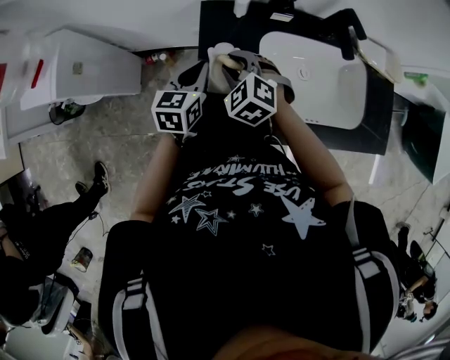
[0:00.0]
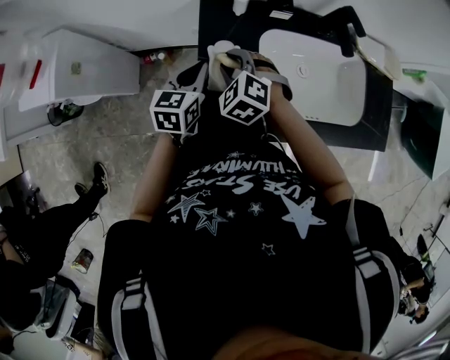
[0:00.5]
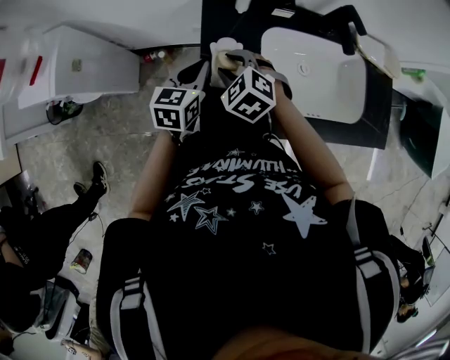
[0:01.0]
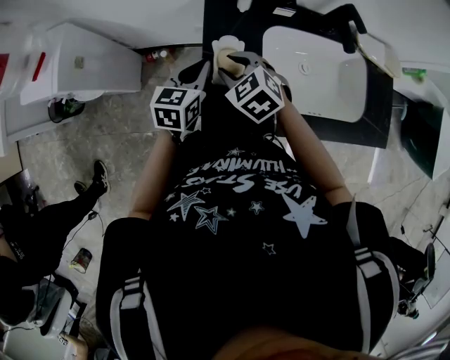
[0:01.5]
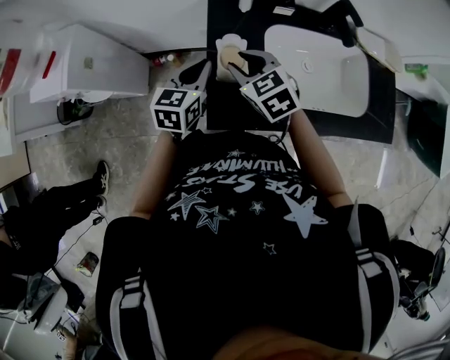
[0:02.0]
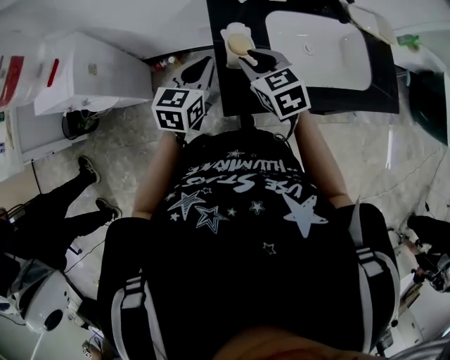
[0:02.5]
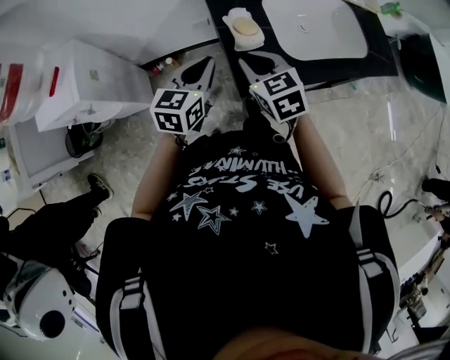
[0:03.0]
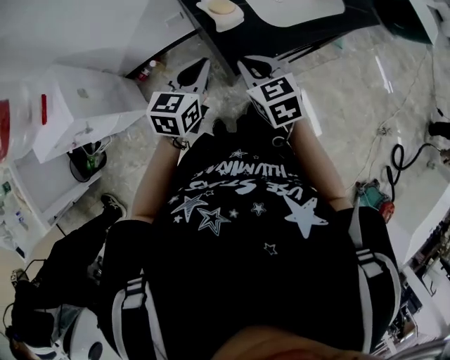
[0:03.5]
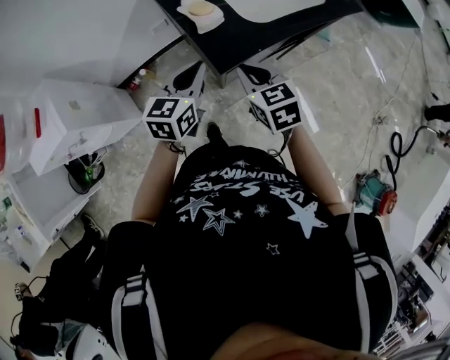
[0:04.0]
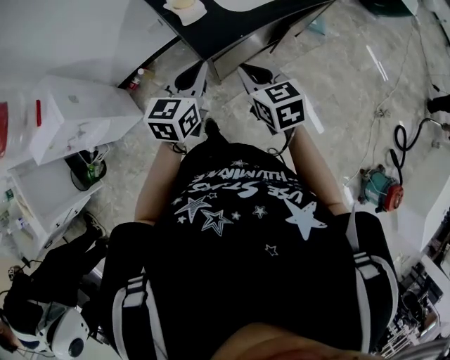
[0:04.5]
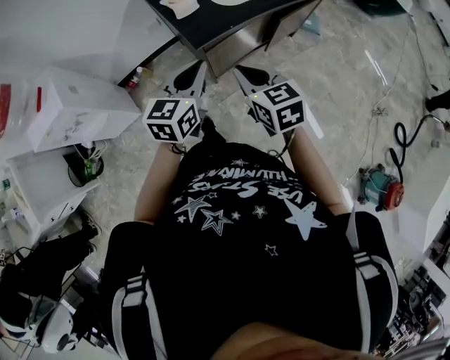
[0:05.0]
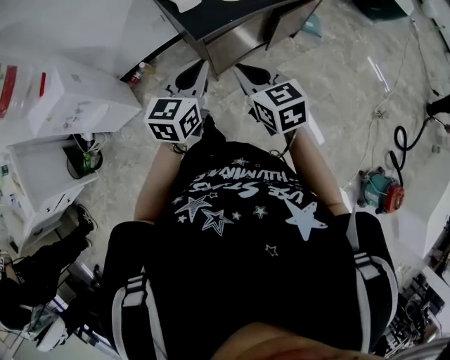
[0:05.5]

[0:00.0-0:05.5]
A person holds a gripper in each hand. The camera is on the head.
0:00.0 to 0:02.0: The left gripper ends up some 5 cm from where it was. Meanwhile the right gripper shifts by about 5 cm, and changes its angle by approximately 30 degrees.
0:02.0 to 0:03.5: The right gripper moves about 20 cm, turns by about 40 degrees, and closes up. The left gripper changes place by about 15 cm, and changes its angle by some 30 degrees.
0:03.5 to 0:05.5: The grippers both shift backward and to the right by approximately 25 cm.

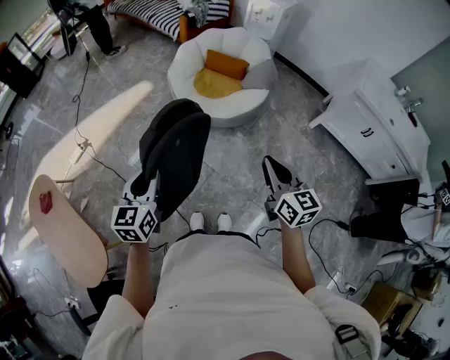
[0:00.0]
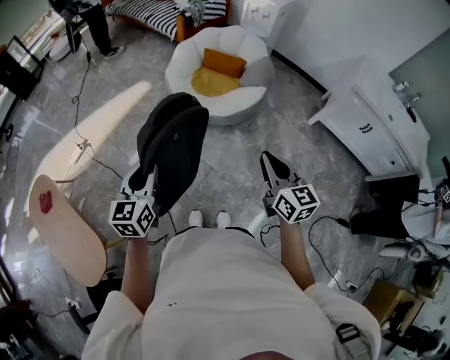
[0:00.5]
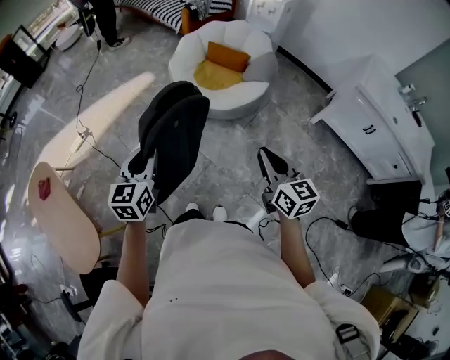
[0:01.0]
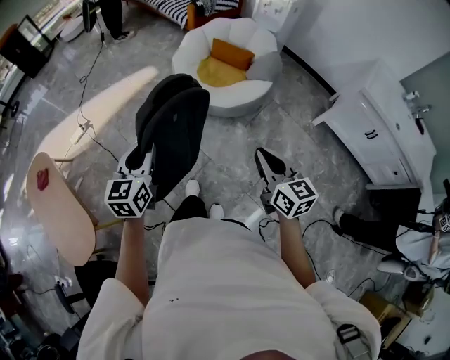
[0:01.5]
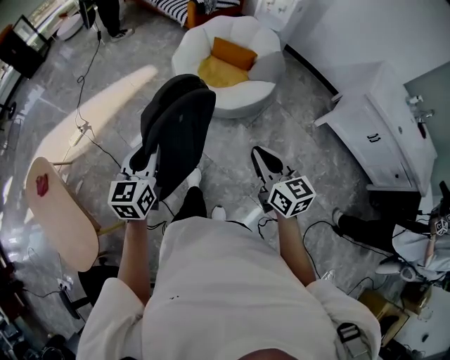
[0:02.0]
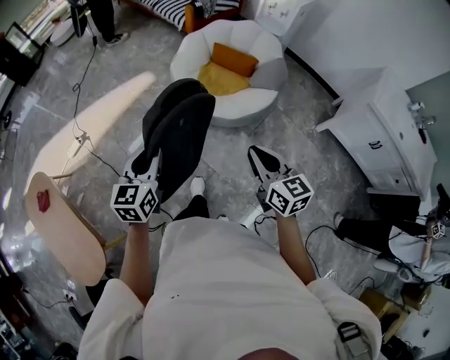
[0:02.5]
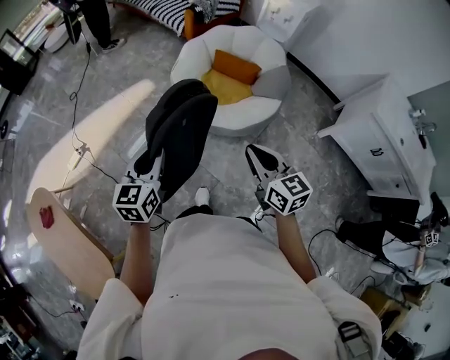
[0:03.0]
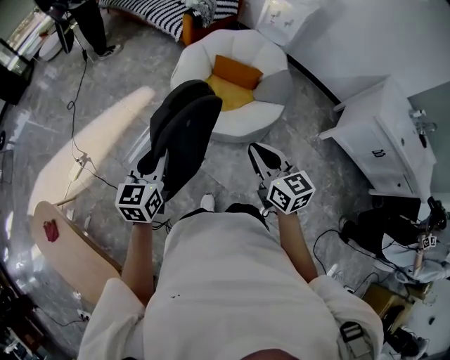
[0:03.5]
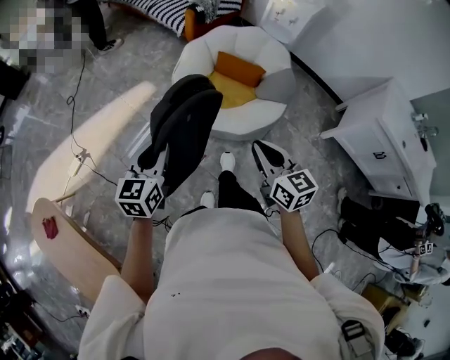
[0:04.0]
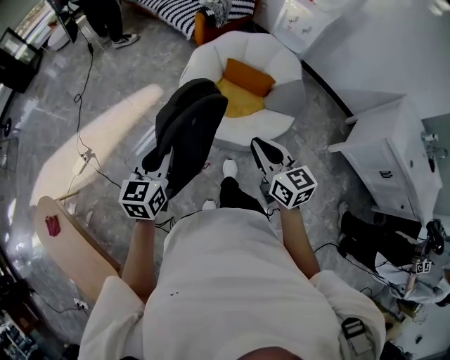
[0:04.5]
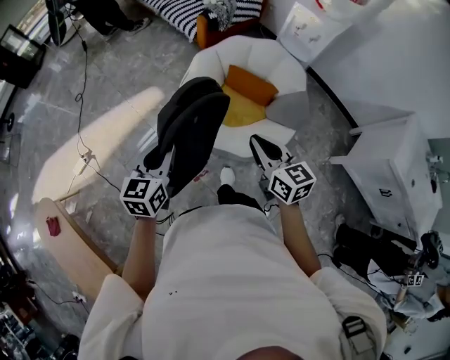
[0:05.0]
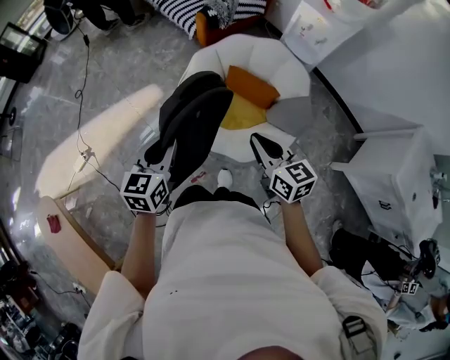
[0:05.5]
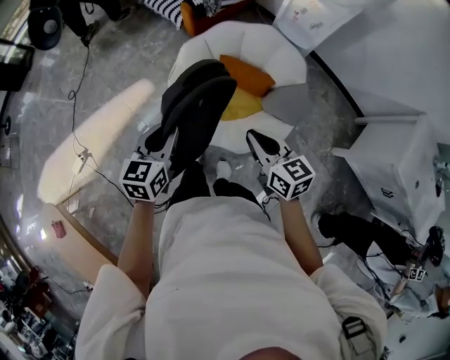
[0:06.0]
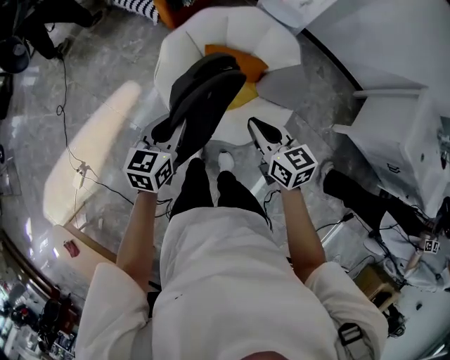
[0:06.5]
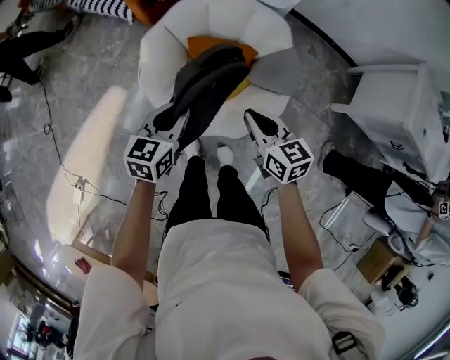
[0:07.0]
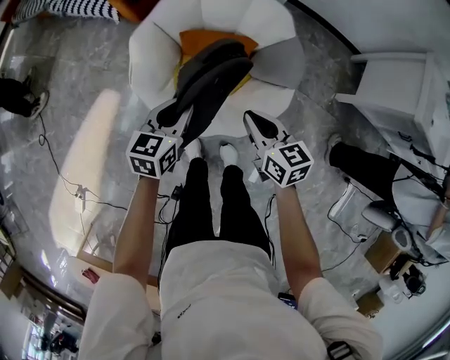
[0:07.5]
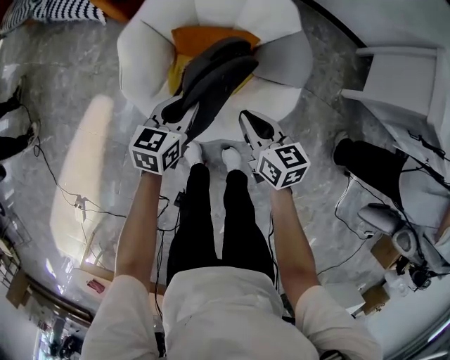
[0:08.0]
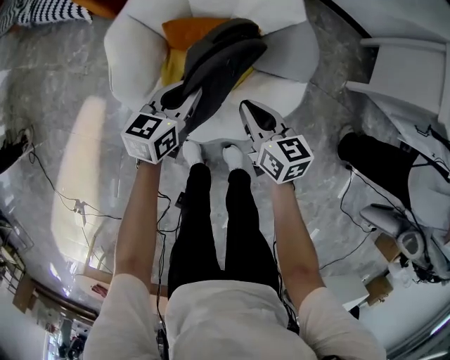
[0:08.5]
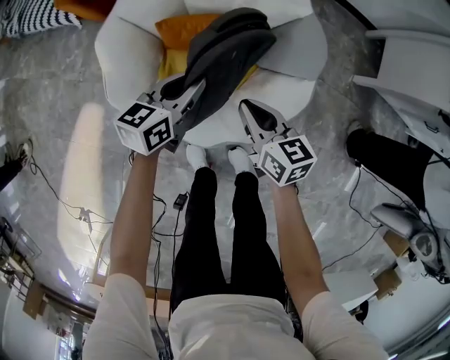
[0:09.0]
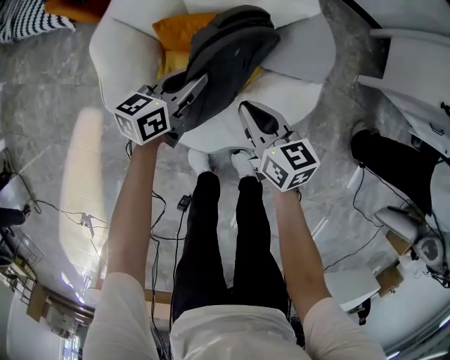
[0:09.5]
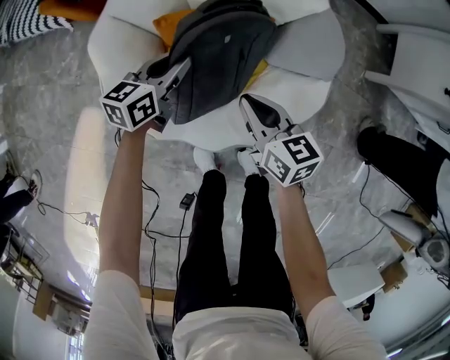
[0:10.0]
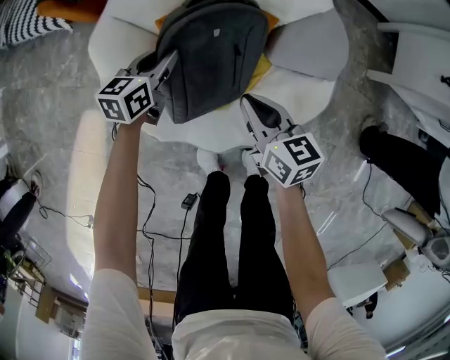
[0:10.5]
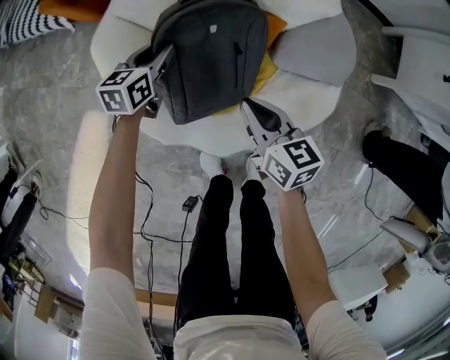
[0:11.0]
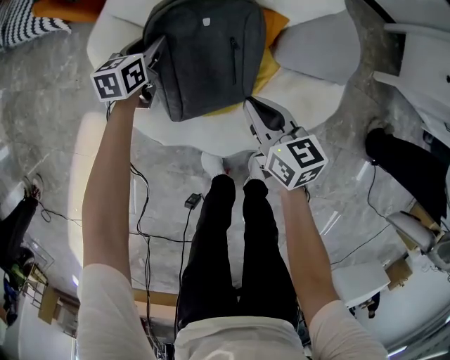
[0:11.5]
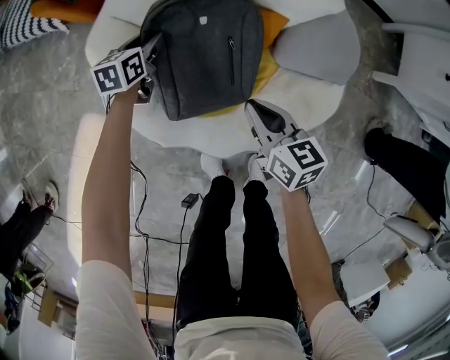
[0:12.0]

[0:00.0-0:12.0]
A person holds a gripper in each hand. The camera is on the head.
0:00.0 to 0:02.0: The left gripper is displaced forward by about 5 cm; the right gripper ends up about 5 cm from where it was.
0:02.0 to 0:04.0: The two grippers go some 25 cm forward.
0:04.0 to 0:06.0: Both grippers move forward and to the right, about 30 cm.
0:06.0 to 0:08.0: Both grippers travel together downward, about 25 cm. The right gripper rotates about 30 degrees; the left gripper turns by roughly 30 degrees.
0:08.0 to 0:10.0: Both grippers move downward and forward, roughly 20 cm.
0:10.0 to 0:12.0: The right gripper changes place by roughly 5 cm; the left gripper travels to the left, downward and forward by about 20 cm, and rotates roughly 20 degrees.

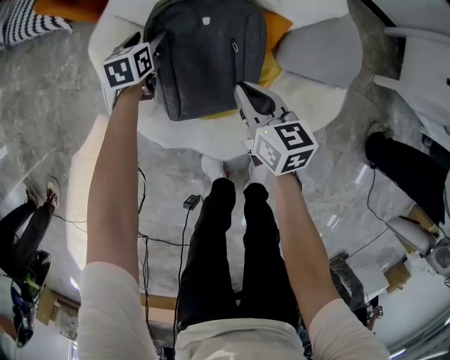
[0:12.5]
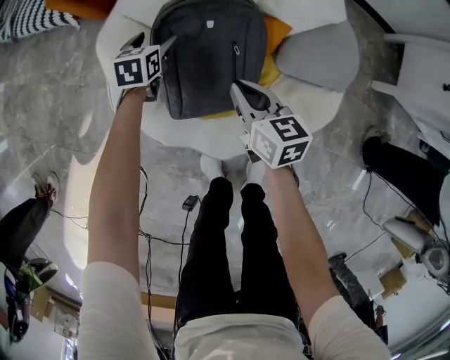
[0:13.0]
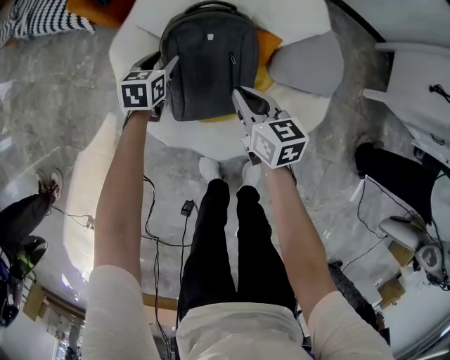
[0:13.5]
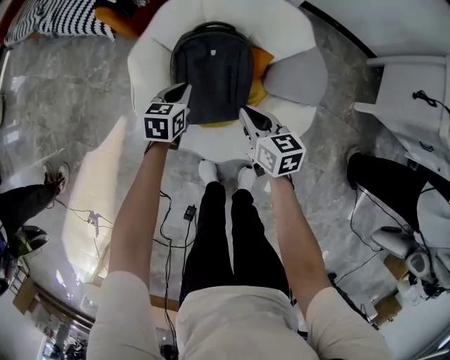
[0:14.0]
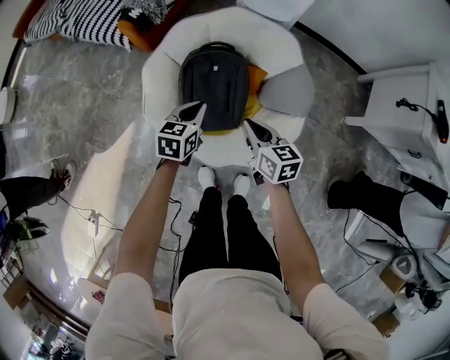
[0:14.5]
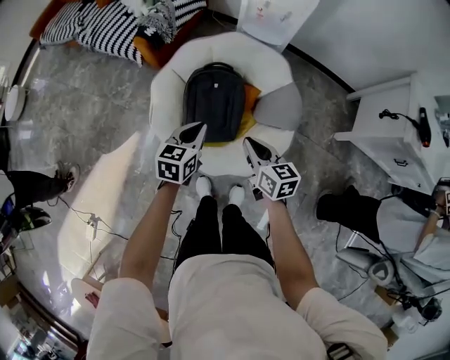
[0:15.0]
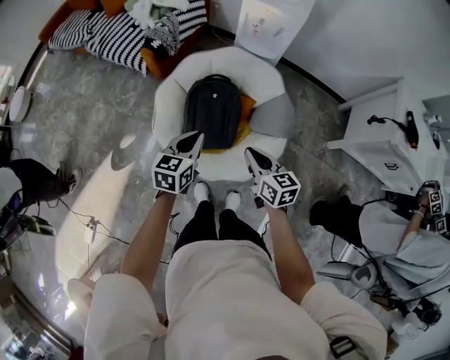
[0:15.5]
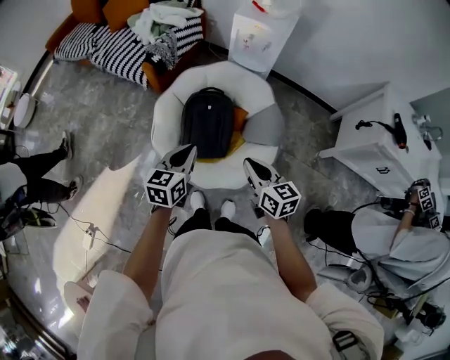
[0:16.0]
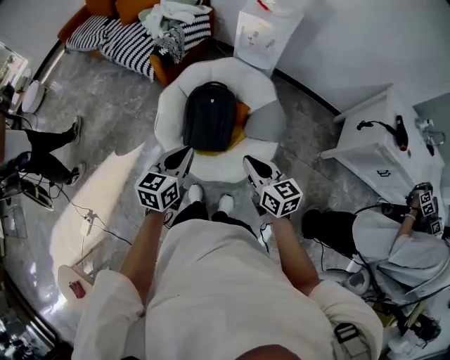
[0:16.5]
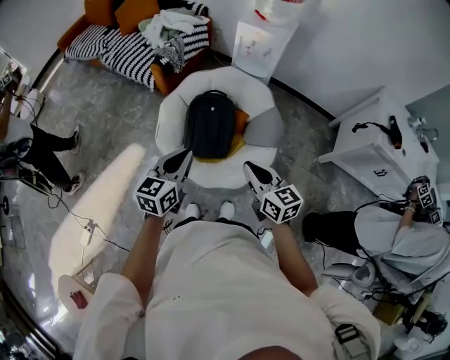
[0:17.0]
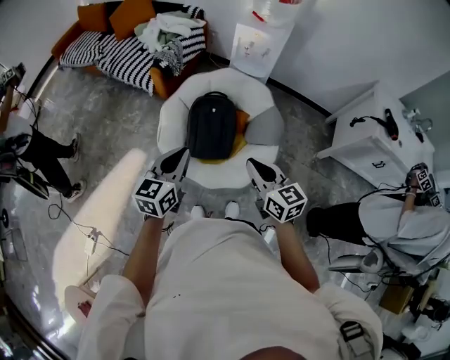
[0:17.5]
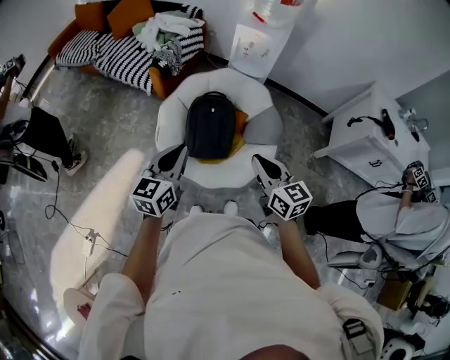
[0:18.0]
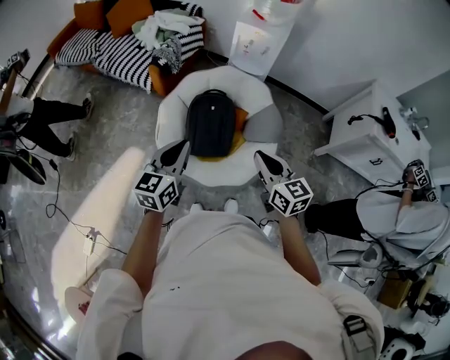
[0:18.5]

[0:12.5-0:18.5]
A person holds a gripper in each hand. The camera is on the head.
0:12.5 to 0:14.5: The left gripper moves upward and backward, about 35 cm, and closes its fingers, while the right gripper travels upward by approximately 20 cm.
0:14.5 to 0:16.5: Both grippers move upward and backward, approximately 30 cm.
0:16.5 to 0:18.5: The right gripper is displaced upward and to the left by roughly 10 cm, while the left gripper goes about 10 cm to the left and upward.

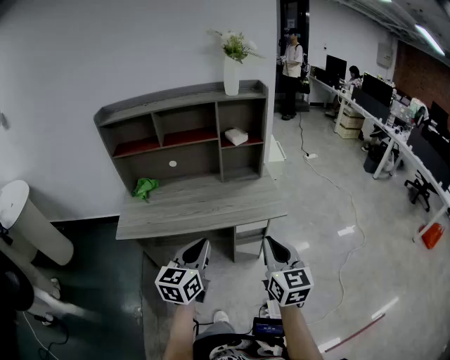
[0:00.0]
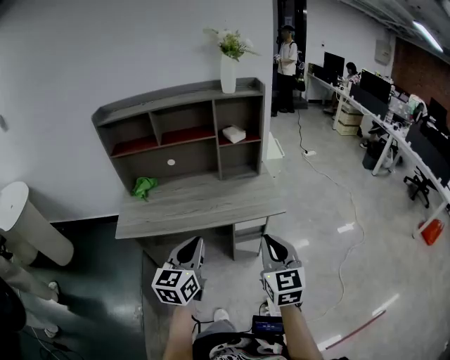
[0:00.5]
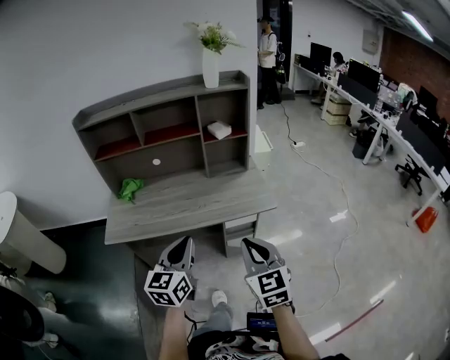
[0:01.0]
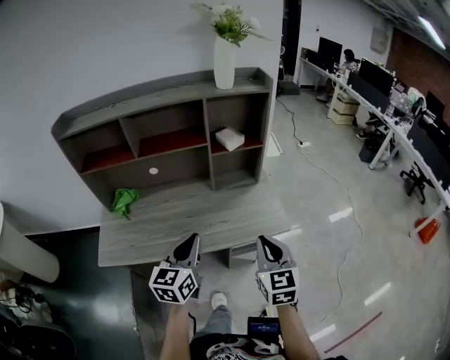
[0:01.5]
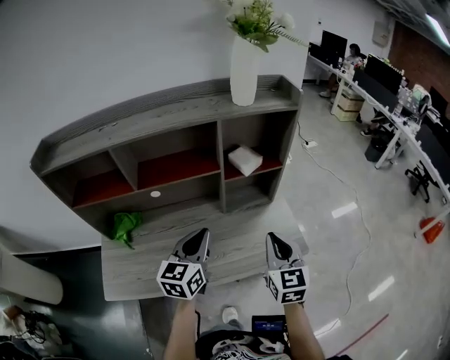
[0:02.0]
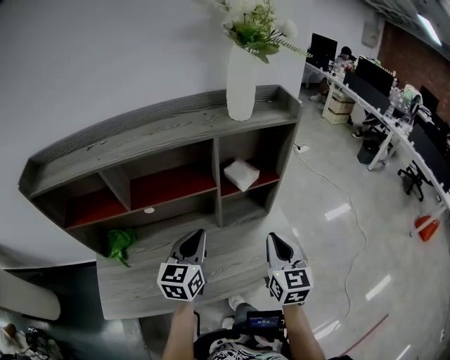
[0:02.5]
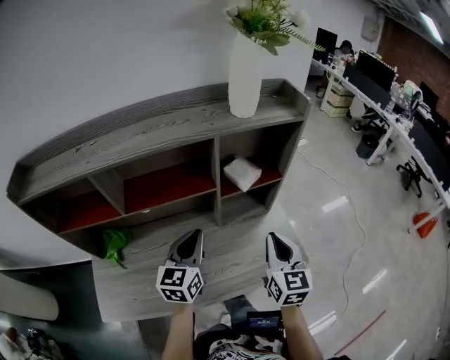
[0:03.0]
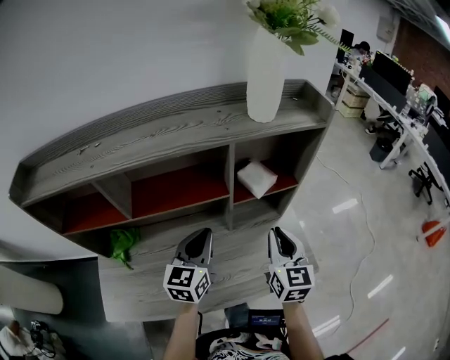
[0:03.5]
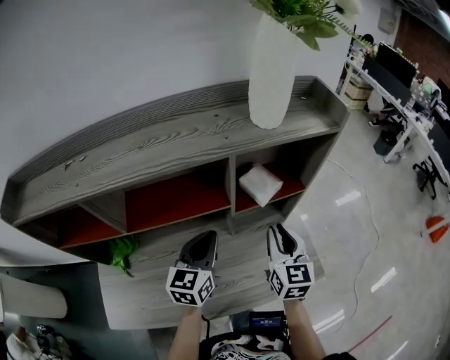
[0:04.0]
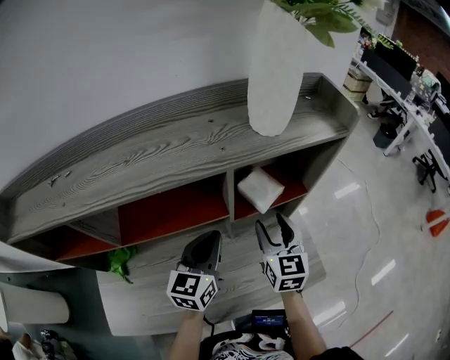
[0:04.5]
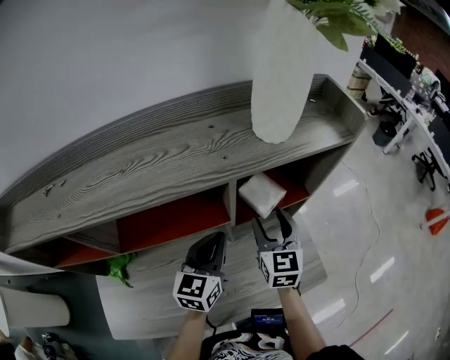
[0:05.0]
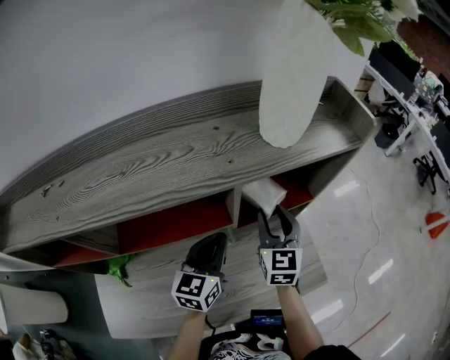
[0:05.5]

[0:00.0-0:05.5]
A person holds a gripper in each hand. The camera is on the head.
0:00.0 to 0:02.0: Both grippers travel together forward, some 35 cm.
0:02.0 to 0:03.5: Both grippers travel together forward, approximately 10 cm.
0:03.5 to 0:05.5: The left gripper shifts approximately 10 cm forward. The right gripper is displaced forward by about 15 cm, and opens its fingers.
